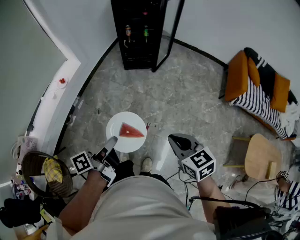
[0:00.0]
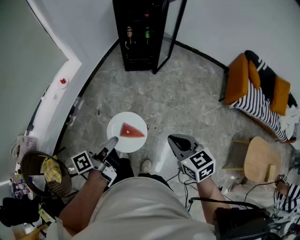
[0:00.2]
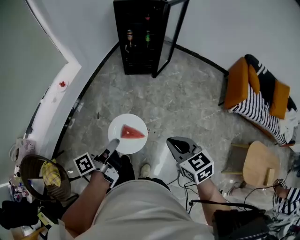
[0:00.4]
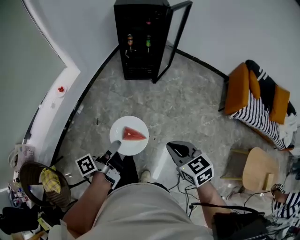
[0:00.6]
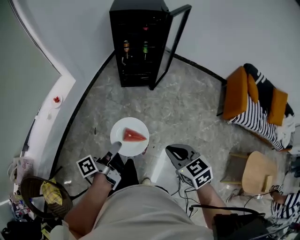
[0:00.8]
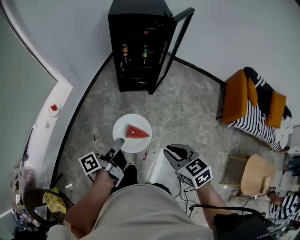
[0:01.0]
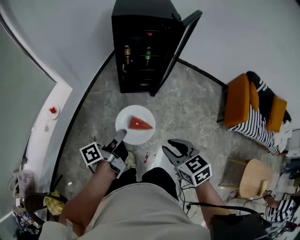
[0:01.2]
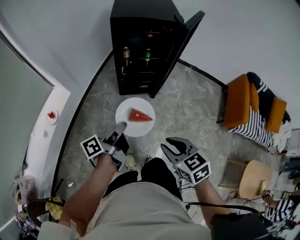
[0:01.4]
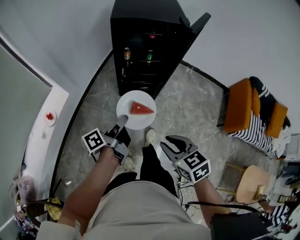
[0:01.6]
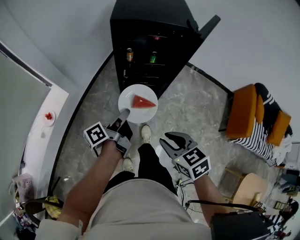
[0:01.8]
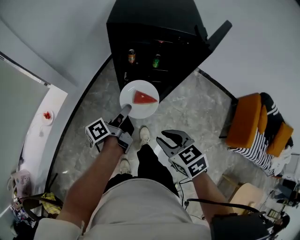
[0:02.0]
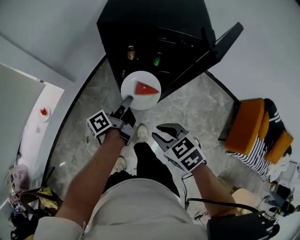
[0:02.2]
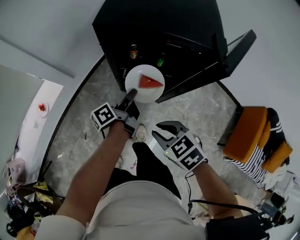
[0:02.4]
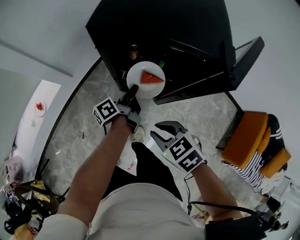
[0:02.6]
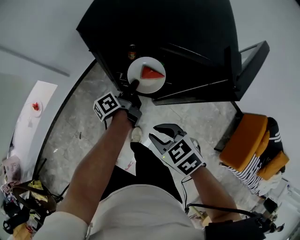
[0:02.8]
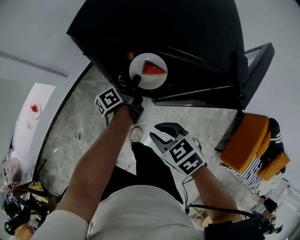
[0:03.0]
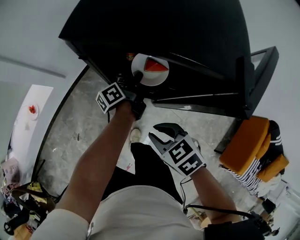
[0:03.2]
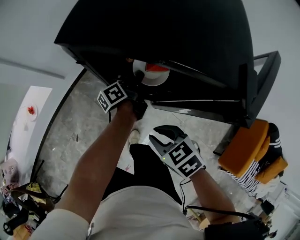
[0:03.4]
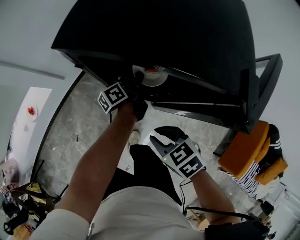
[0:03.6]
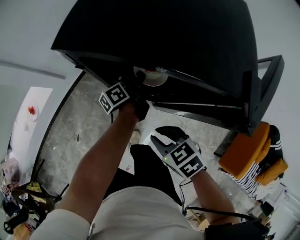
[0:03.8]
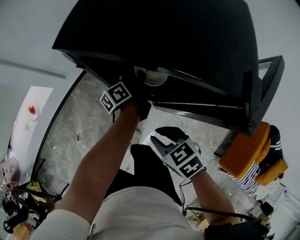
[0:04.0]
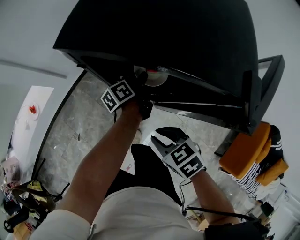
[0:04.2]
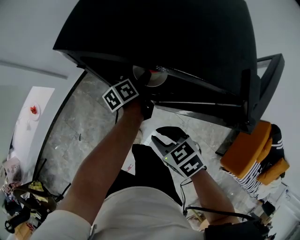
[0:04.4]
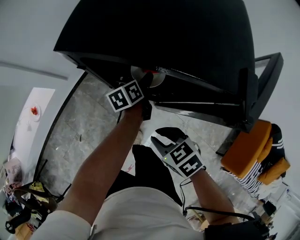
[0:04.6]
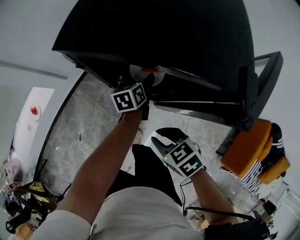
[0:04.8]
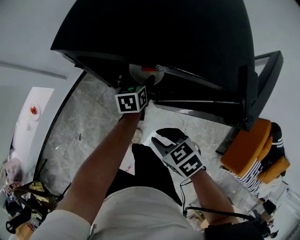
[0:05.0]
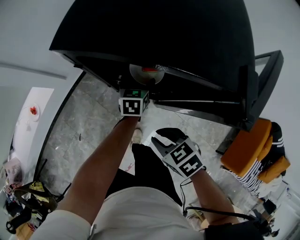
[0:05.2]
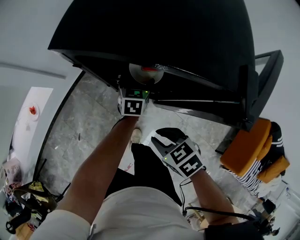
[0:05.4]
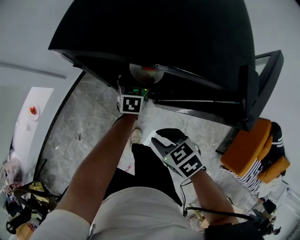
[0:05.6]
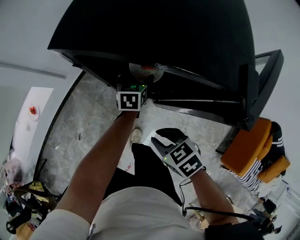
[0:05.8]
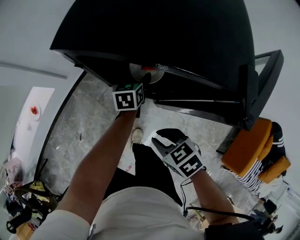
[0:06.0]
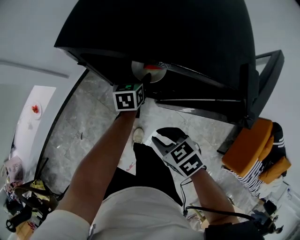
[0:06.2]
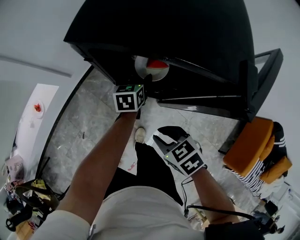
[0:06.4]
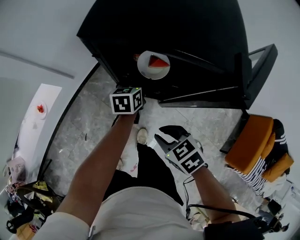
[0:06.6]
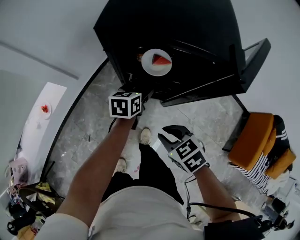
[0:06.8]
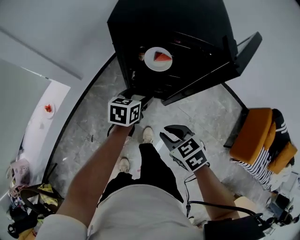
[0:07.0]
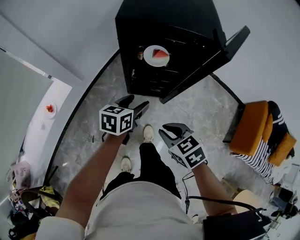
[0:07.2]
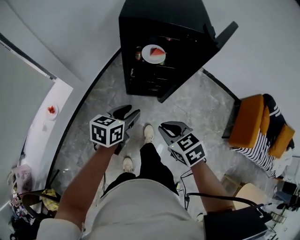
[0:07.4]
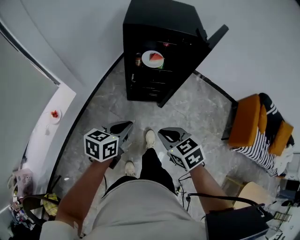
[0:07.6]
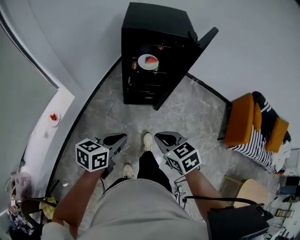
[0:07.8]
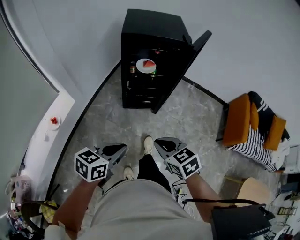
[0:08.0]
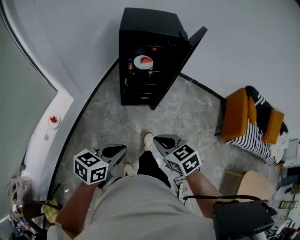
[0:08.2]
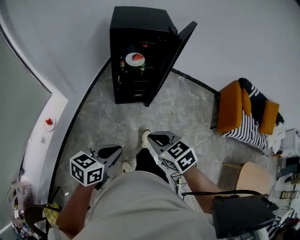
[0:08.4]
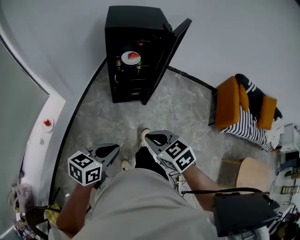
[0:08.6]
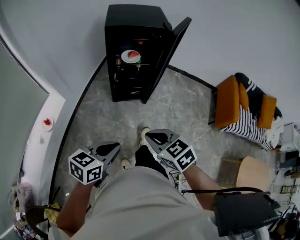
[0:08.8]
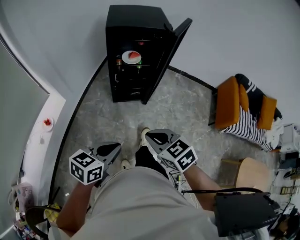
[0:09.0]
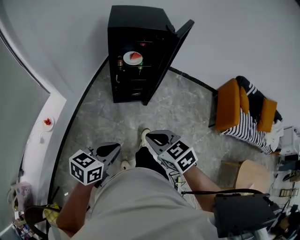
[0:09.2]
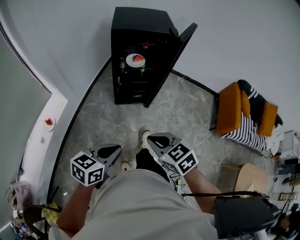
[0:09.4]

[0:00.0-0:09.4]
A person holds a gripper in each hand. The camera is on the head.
0:00.0 to 0:01.6: Both grippers are carried forward, about 50 cm. The right gripper opens.
0:01.6 to 0:03.2: The left gripper moves roughly 50 cm; the right gripper changes place by about 35 cm, and rotates approximately 30 degrees.
0:03.2 to 0:04.8: The left gripper changes its angle by some 40 degrees, and opens up.
0:06.2 to 0:07.8: The right gripper changes place by roughly 35 cm, and swivels some 30 degrees. Meanwhile the left gripper moves approximately 60 cm, changes its angle by approximately 40 degrees, and closes its fingers.
0:07.8 to 0:09.4: The two grippers go roughly 10 cm backward.

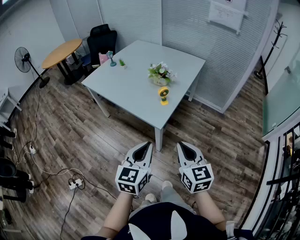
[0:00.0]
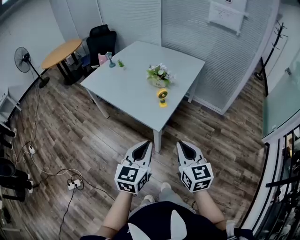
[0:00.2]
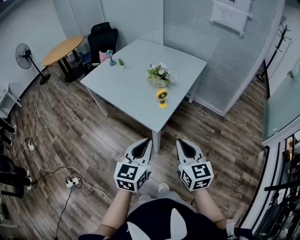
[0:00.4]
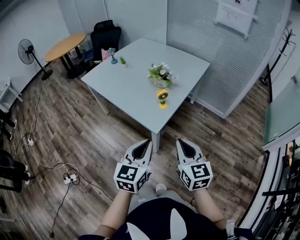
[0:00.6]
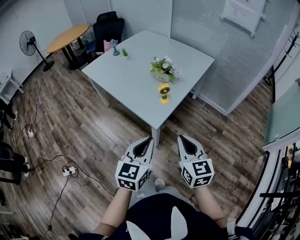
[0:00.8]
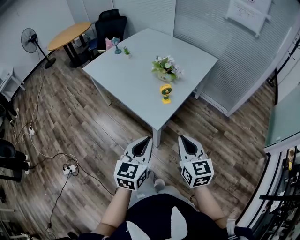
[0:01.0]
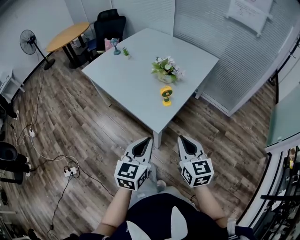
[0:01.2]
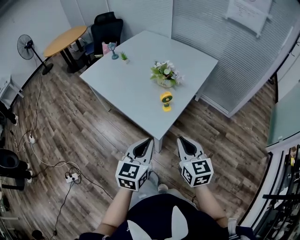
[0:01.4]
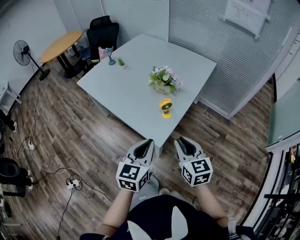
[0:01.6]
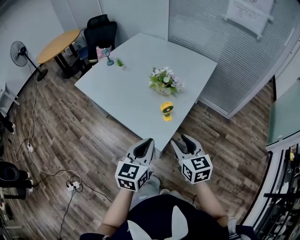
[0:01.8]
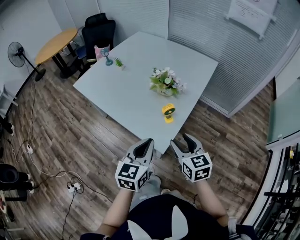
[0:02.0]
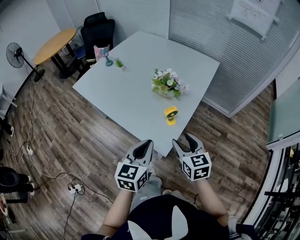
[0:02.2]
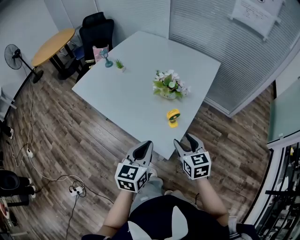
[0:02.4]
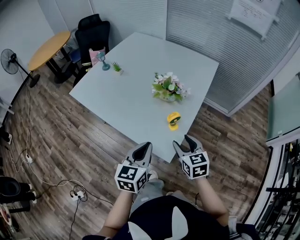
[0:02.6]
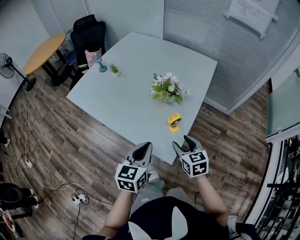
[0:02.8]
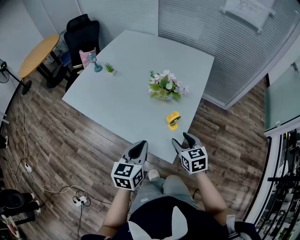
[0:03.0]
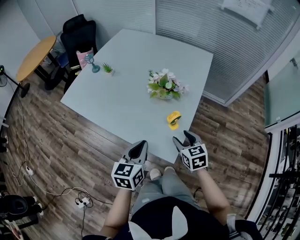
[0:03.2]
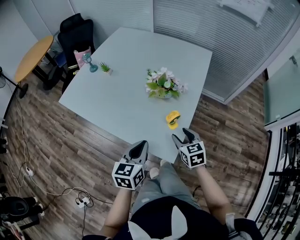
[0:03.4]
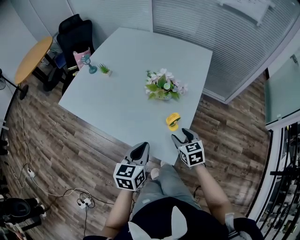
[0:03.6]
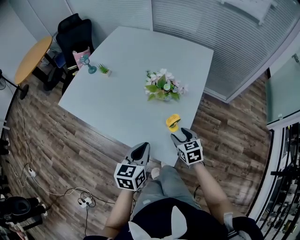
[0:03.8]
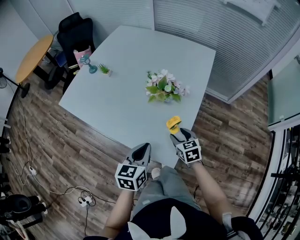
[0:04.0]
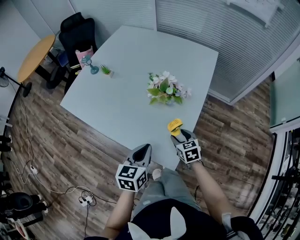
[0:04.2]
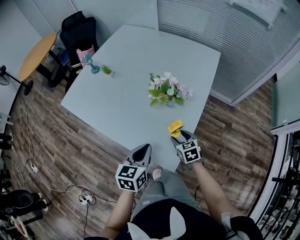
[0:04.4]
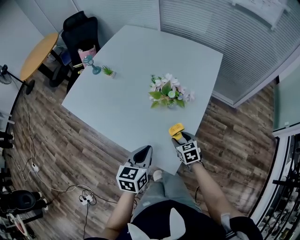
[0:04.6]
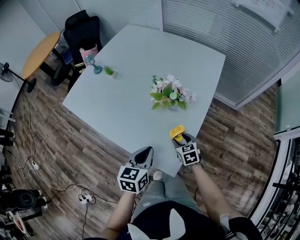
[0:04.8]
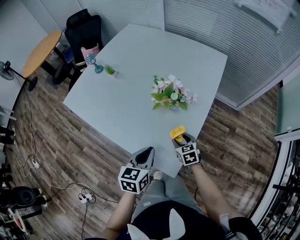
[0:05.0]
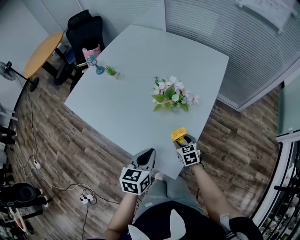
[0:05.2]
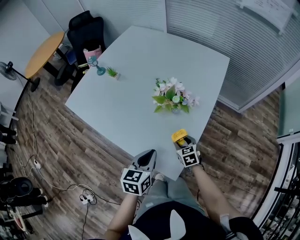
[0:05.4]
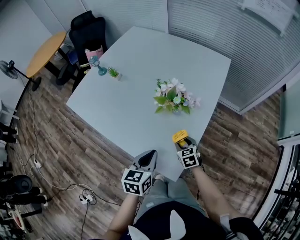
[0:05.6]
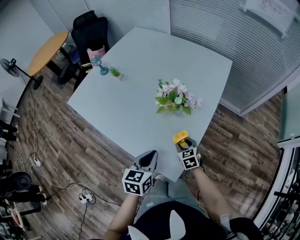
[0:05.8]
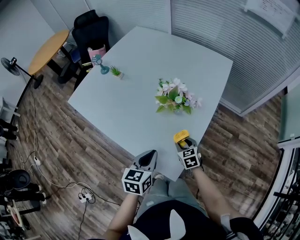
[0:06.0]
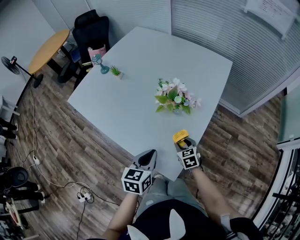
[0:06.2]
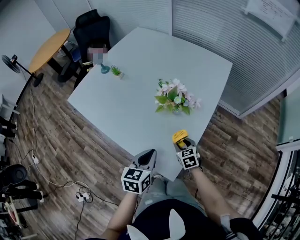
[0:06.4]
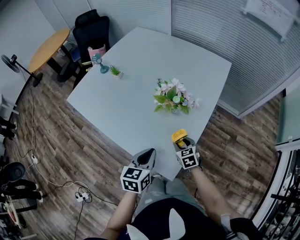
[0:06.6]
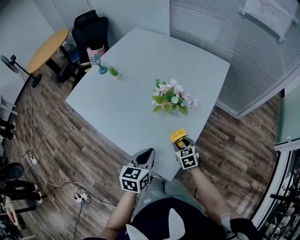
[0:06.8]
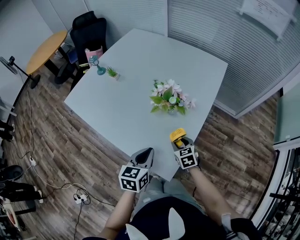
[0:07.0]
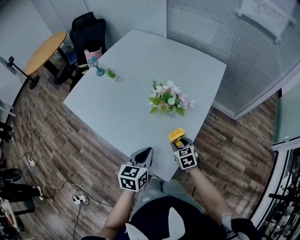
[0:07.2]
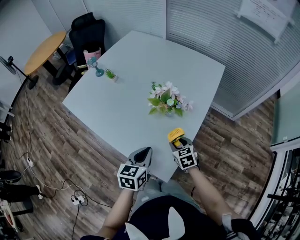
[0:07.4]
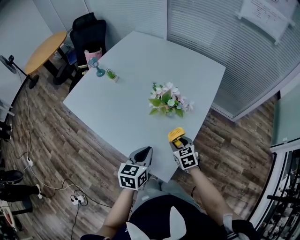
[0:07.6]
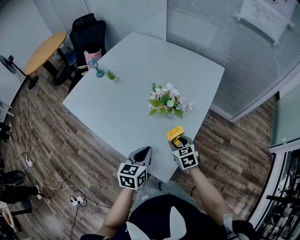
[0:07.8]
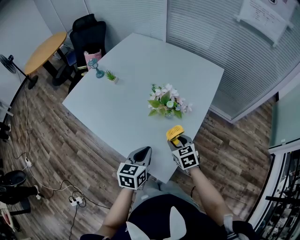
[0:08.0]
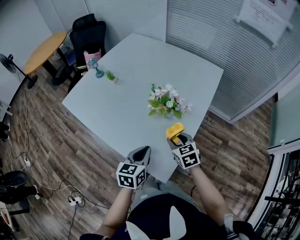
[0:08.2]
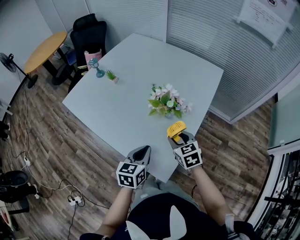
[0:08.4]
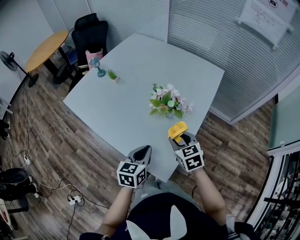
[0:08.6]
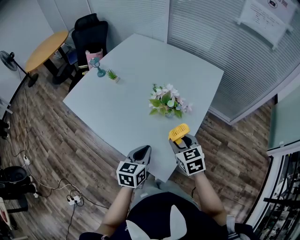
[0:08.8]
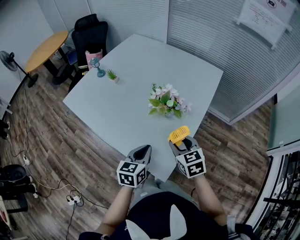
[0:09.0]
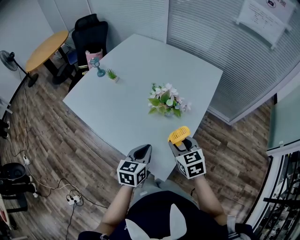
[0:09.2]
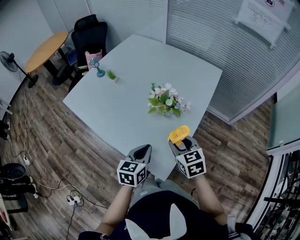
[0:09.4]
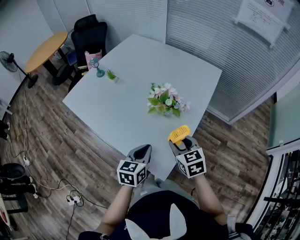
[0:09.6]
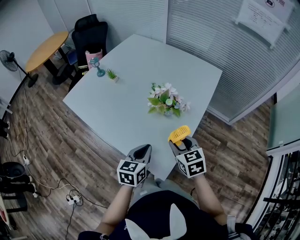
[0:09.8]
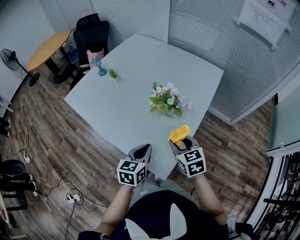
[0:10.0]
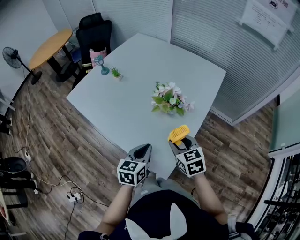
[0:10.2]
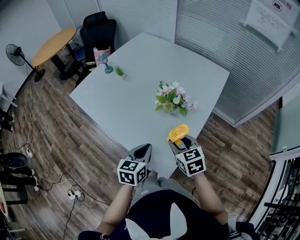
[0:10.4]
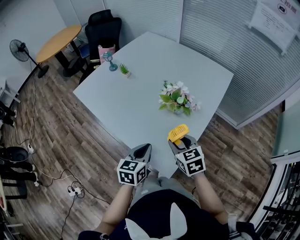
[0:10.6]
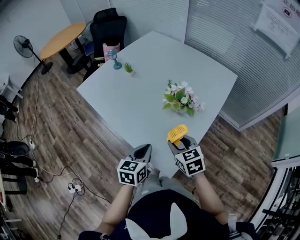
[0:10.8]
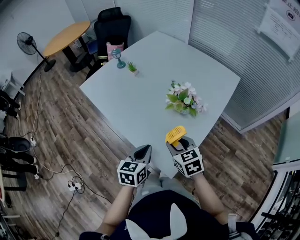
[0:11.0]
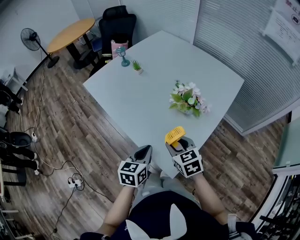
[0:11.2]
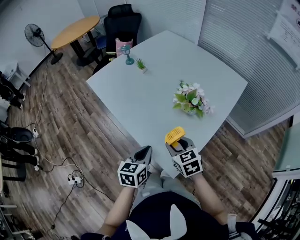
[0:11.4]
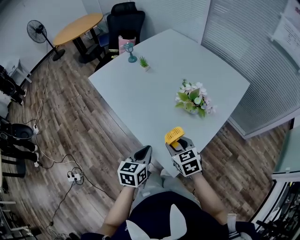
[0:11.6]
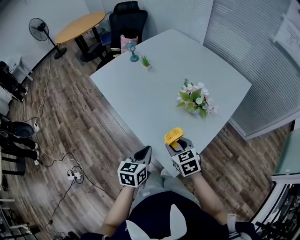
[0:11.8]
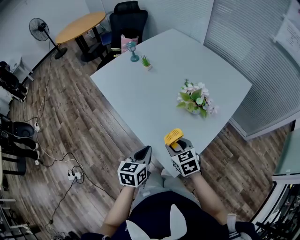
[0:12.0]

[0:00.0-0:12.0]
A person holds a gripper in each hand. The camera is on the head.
0:00.0 to 0:01.6: The grippers both shift forward by about 20 cm.
0:01.6 to 0:03.0: The left gripper goes roughly 20 cm forward, to the left and downward; the right gripper moves forward and downward, some 20 cm, and opens.
0:03.0 to 0:04.4: The left gripper travels forward by roughly 5 cm; the right gripper moves downward and forward, some 15 cm.
0:04.4 to 0:06.0: The right gripper changes place by some 5 cm.
0:06.0 to 0:07.6: The right gripper shifts roughly 5 cm upward.
0:07.6 to 0:09.0: The right gripper is displaced upward by some 15 cm.
0:09.0 to 0:10.4: The grippers make only small movements.
0:10.4 to 0:12.0: The left gripper is displaced to the left by roughly 5 cm, while the right gripper shifts some 10 cm to the left and downward.

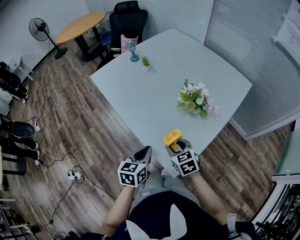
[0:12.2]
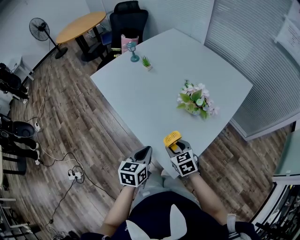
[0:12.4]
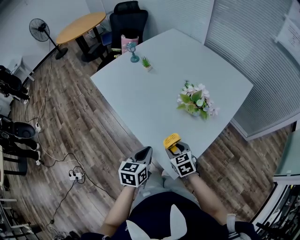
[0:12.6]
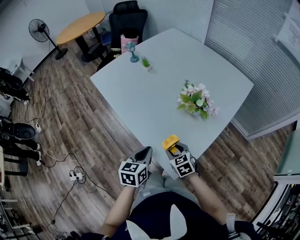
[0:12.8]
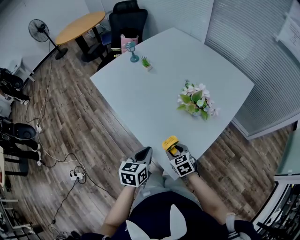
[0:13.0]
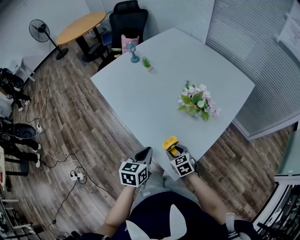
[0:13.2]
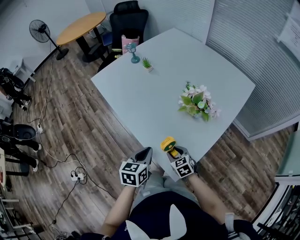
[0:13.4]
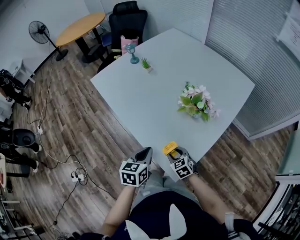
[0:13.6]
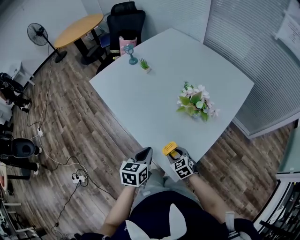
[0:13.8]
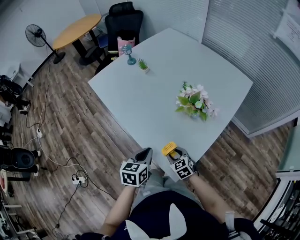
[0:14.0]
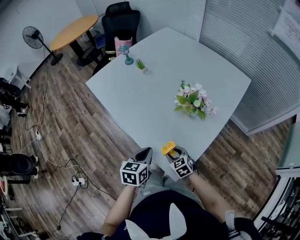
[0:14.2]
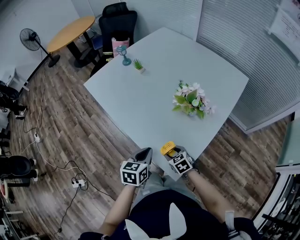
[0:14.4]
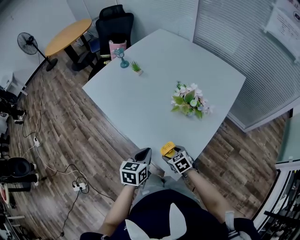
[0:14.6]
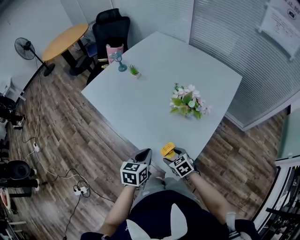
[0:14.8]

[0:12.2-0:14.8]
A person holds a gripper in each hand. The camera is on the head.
0:12.2 to 0:13.4: The right gripper moves downward, roughly 10 cm.
0:13.4 to 0:14.8: The right gripper opens.
